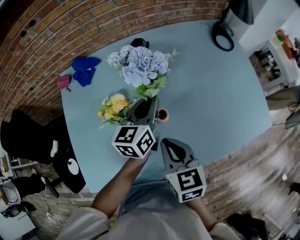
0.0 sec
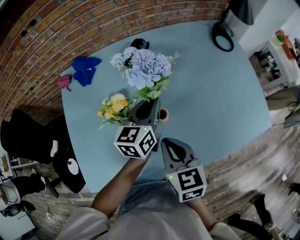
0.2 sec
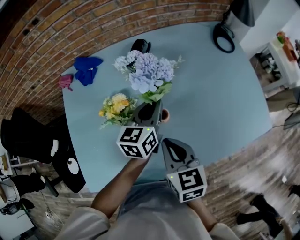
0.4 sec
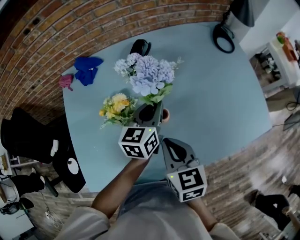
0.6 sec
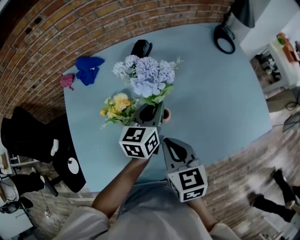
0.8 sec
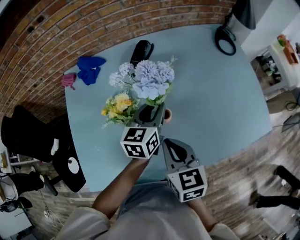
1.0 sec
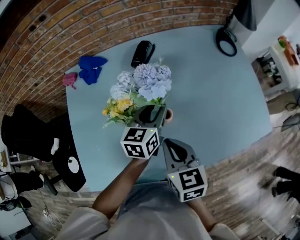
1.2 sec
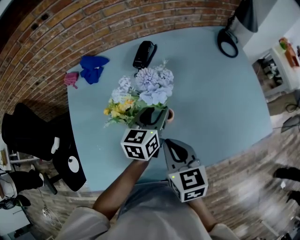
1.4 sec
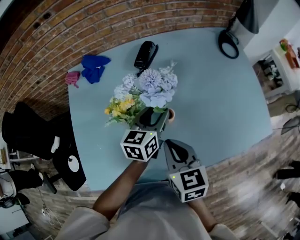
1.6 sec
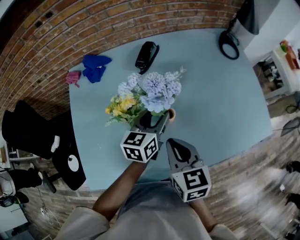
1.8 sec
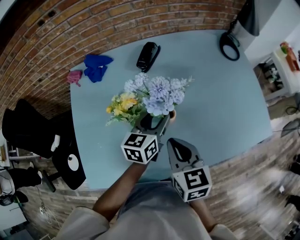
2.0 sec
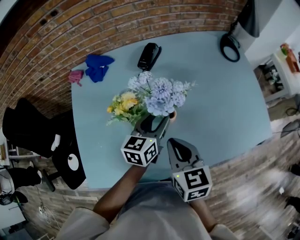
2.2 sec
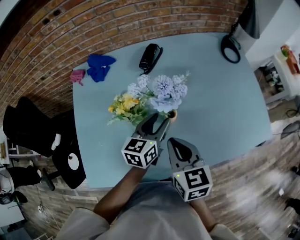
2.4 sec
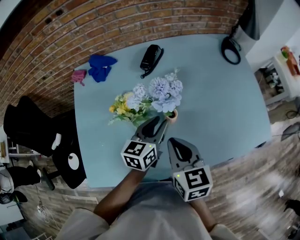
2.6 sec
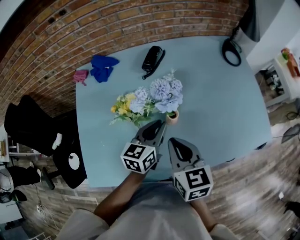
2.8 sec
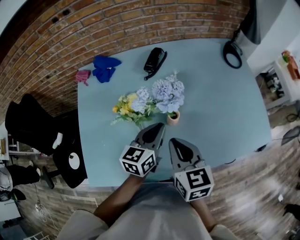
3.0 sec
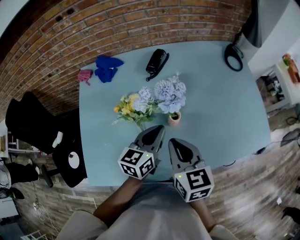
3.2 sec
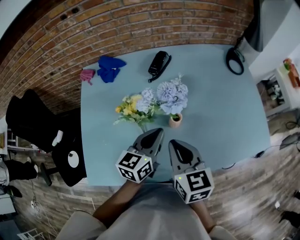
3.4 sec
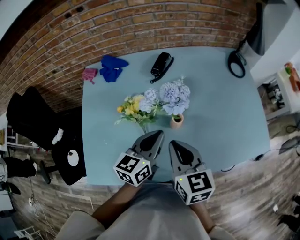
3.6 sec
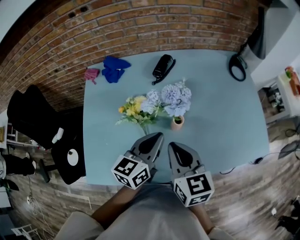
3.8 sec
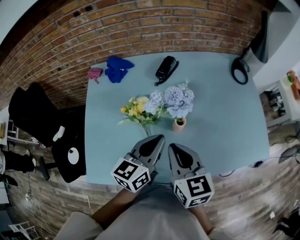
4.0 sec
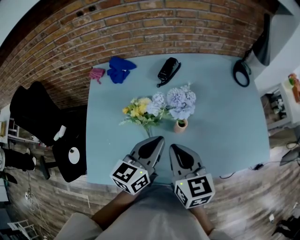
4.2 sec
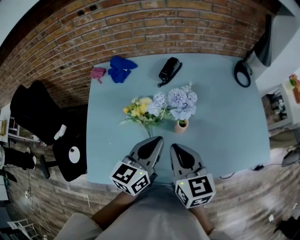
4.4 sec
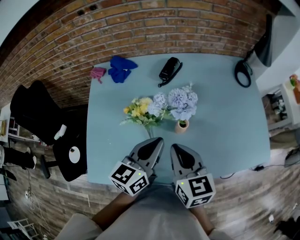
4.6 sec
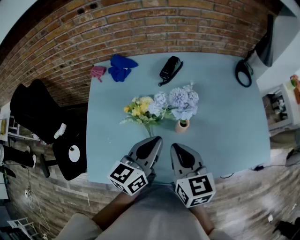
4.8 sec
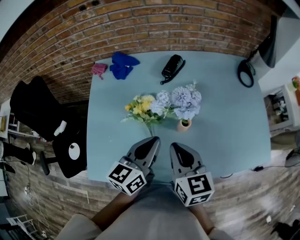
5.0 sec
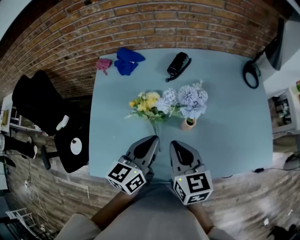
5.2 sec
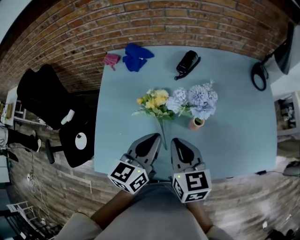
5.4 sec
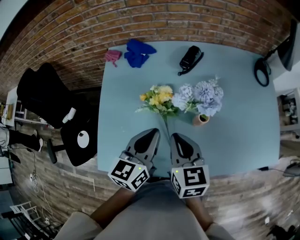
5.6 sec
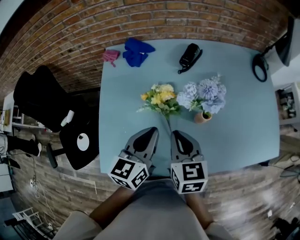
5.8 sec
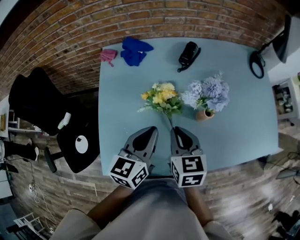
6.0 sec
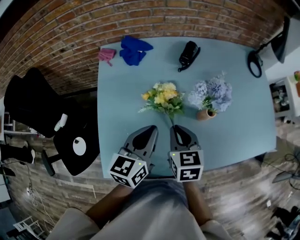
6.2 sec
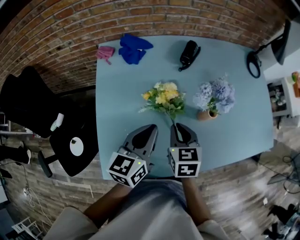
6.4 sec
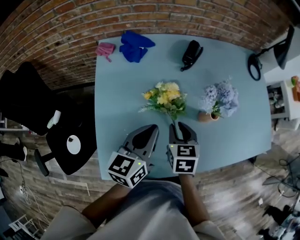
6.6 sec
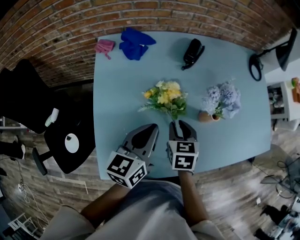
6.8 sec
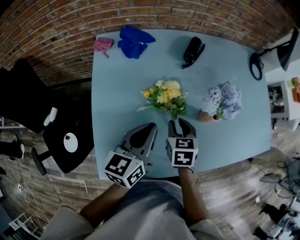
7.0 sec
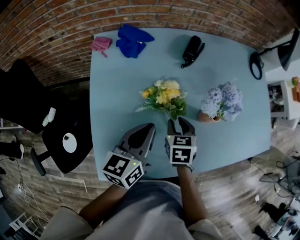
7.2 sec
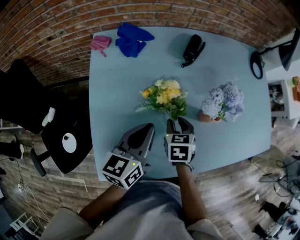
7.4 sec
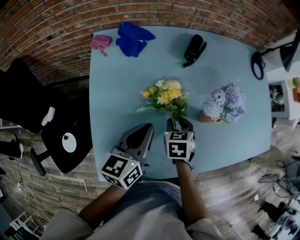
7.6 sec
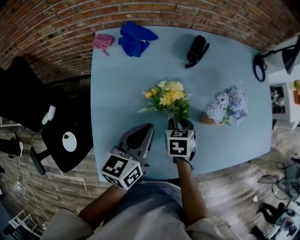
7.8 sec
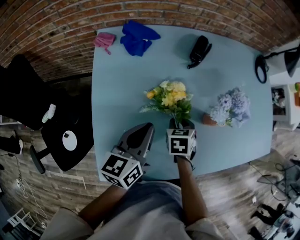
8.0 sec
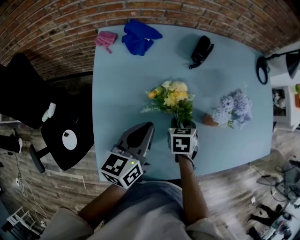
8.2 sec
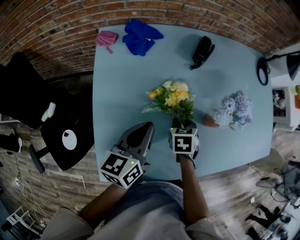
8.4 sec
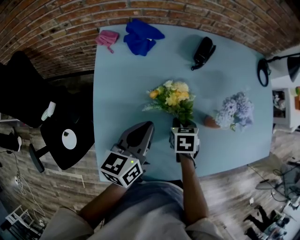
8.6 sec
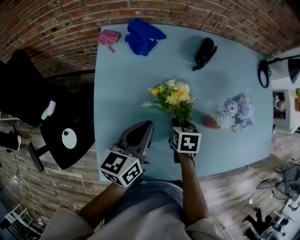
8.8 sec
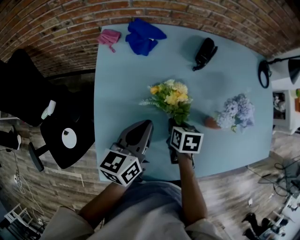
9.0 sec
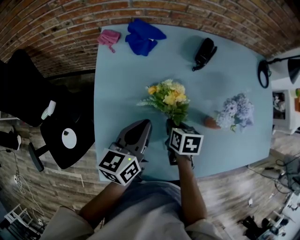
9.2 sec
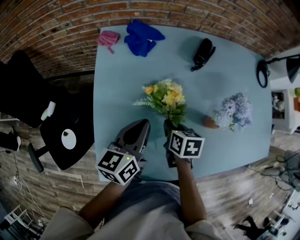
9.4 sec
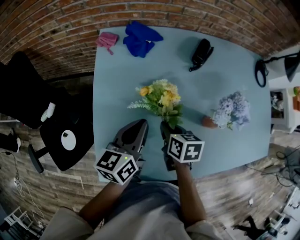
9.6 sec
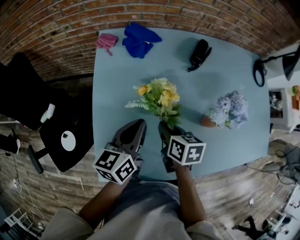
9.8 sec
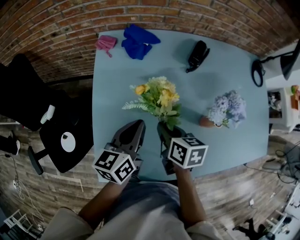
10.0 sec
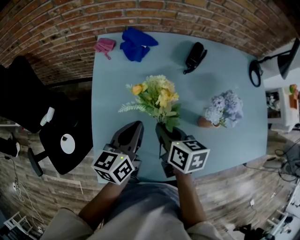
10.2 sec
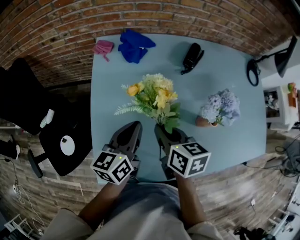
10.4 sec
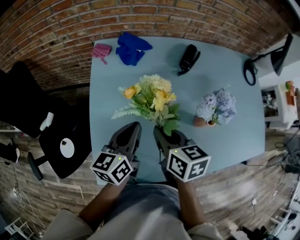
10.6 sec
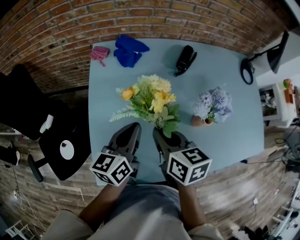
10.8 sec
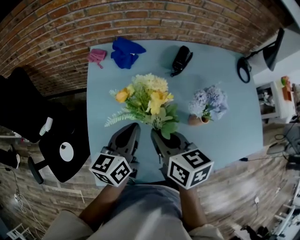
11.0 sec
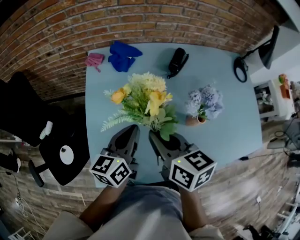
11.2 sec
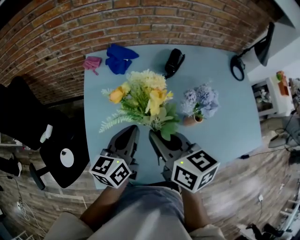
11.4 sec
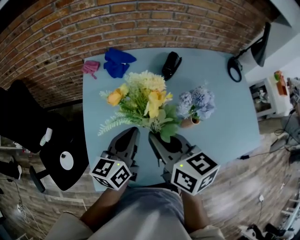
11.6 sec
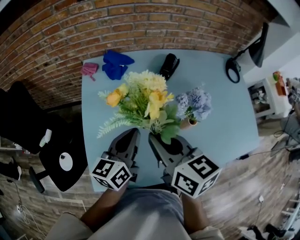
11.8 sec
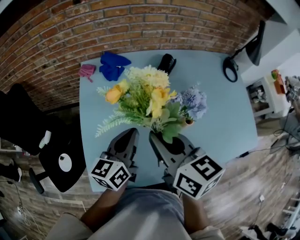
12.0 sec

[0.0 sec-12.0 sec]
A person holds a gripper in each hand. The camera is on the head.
0.0 sec to 1.6 sec: The left gripper ends up about 5 cm from where it was, and opens its fingers.
1.6 sec to 3.0 sec: The left gripper is displaced backward by about 5 cm, and closes up.
3.0 sec to 4.4 sec: The left gripper moves upward, roughly 10 cm.
4.4 sec to 6.0 sec: The right gripper heads to the left and downward, covering some 10 cm; the left gripper shifts some 15 cm to the left.
6.0 sec to 7.6 sec: The right gripper heads downward, covering approximately 15 cm, swivels about 30 degrees, and opens its fingers; the left gripper is displaced to the left by some 5 cm.
7.6 sec to 9.0 sec: The right gripper changes its angle by some 20 degrees.
9.0 sec to 10.4 sec: The right gripper goes about 15 cm upward, and swivels approximately 20 degrees.
10.4 sec to 12.0 sec: The left gripper is displaced to the right and upward by about 10 cm. The right gripper goes about 15 cm upward.

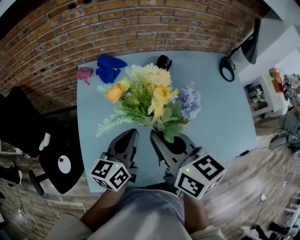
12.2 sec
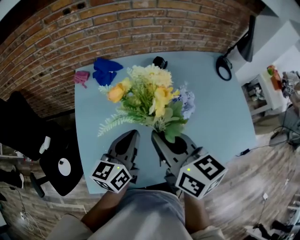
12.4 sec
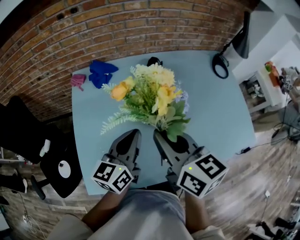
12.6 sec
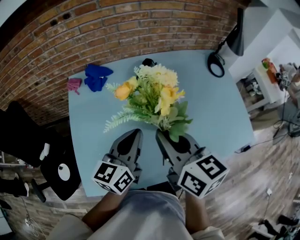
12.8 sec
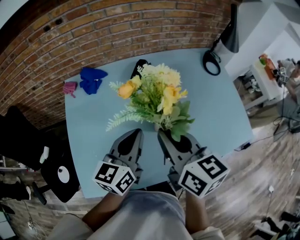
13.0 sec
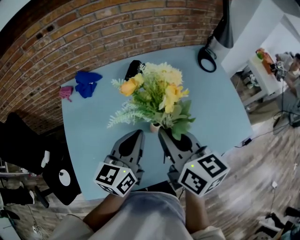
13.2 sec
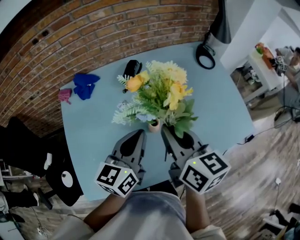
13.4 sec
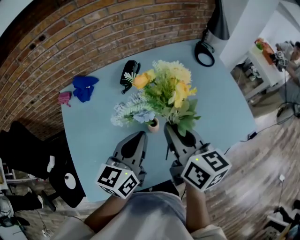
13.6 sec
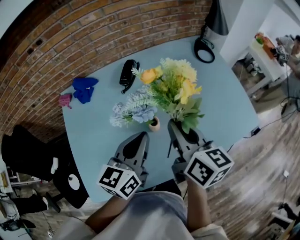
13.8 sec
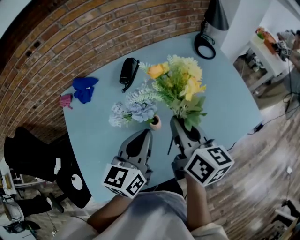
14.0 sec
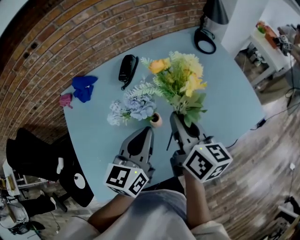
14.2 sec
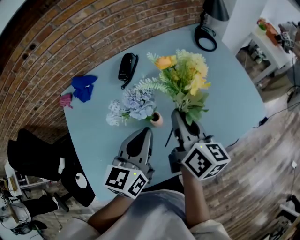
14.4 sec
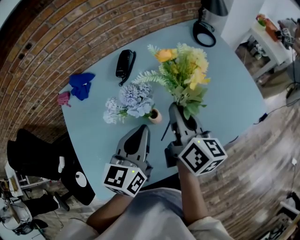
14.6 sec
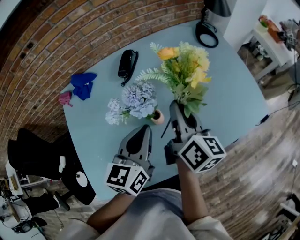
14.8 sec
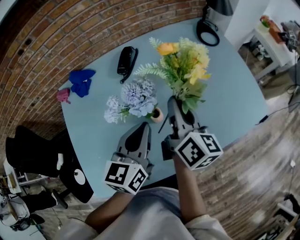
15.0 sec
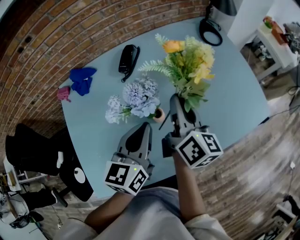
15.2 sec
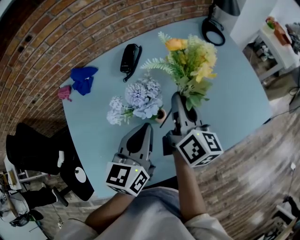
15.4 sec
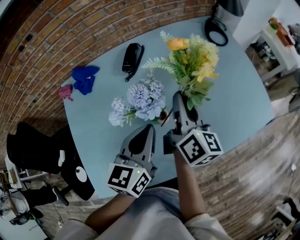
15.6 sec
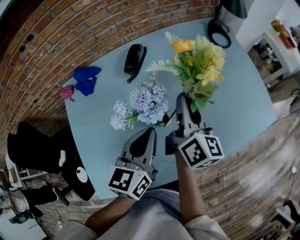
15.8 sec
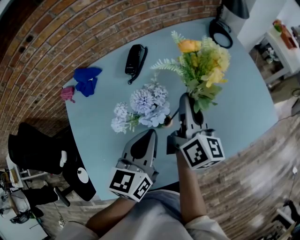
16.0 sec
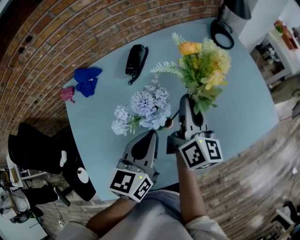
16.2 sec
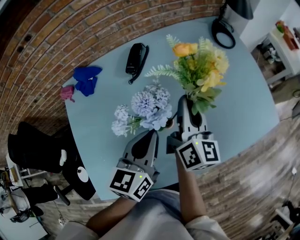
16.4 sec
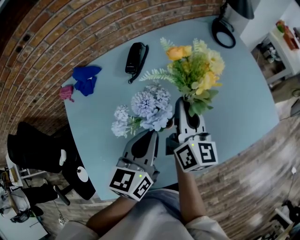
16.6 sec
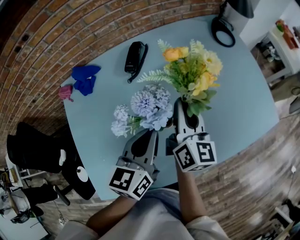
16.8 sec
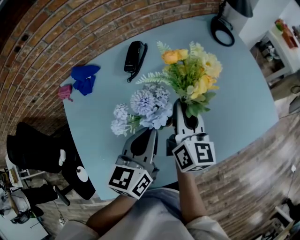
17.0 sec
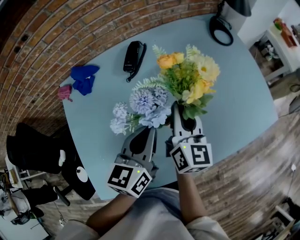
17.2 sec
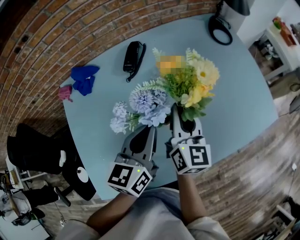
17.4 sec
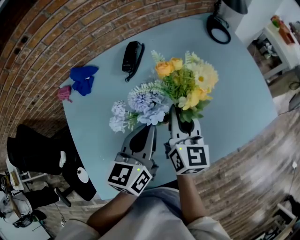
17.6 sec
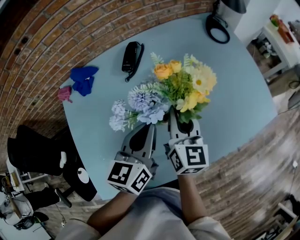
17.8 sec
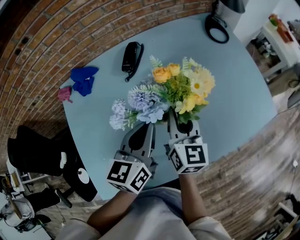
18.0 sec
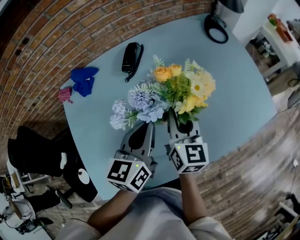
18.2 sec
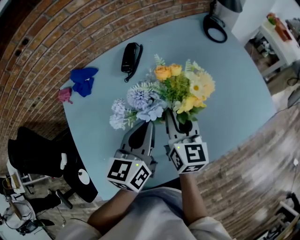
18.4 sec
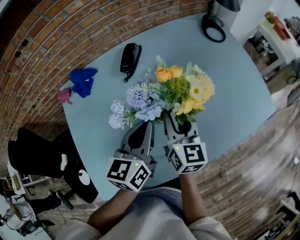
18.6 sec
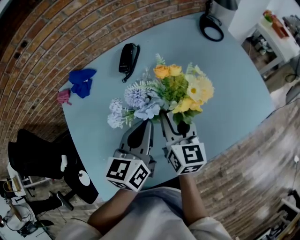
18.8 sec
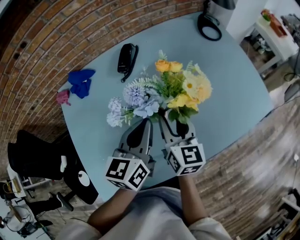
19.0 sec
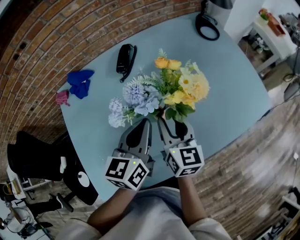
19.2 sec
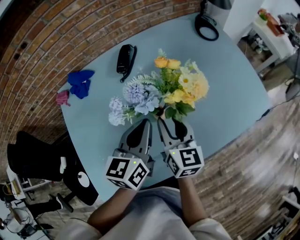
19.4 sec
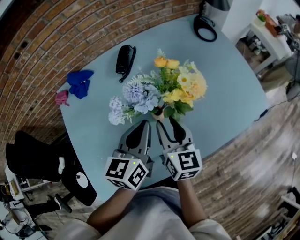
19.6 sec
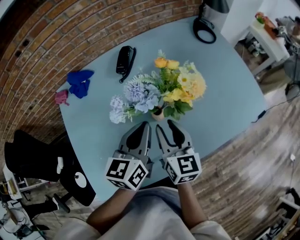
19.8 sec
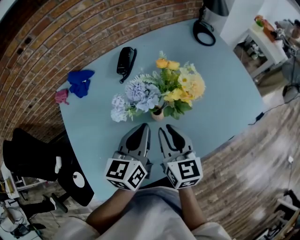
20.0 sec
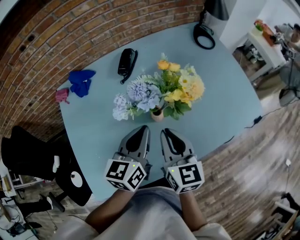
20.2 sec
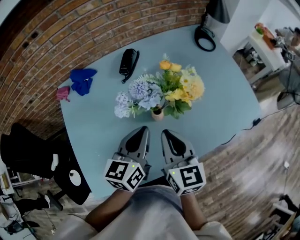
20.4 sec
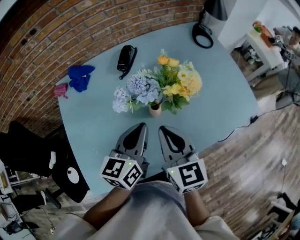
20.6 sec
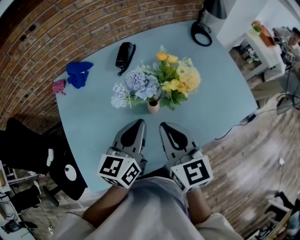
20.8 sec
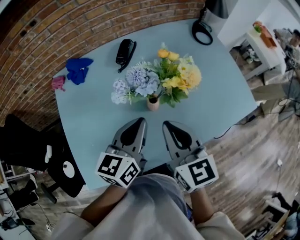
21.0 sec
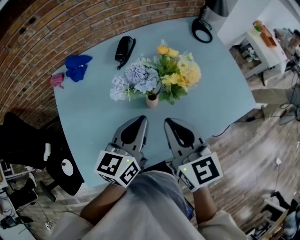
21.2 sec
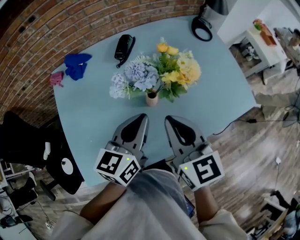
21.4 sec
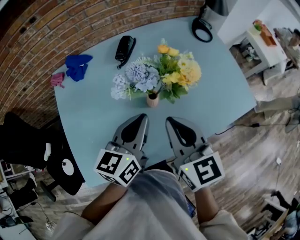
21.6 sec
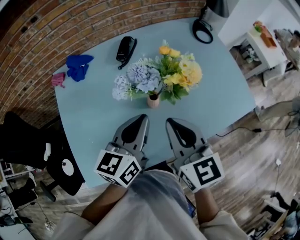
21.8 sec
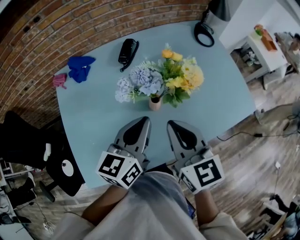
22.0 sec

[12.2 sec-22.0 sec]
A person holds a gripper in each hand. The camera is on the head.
12.2 sec to 13.6 sec: The two grippers go some 20 cm to the right. The right gripper turns by approximately 20 degrees.
13.6 sec to 15.0 sec: The right gripper travels forward and downward by some 10 cm, and rotates about 20 degrees.
15.0 sec to 16.4 sec: The grippers make only small movements.
16.4 sec to 17.8 sec: The right gripper moves approximately 5 cm.
17.8 sec to 19.2 sec: The right gripper changes place by roughly 5 cm, and opens.
19.2 sec to 20.6 sec: The right gripper travels upward and backward by about 10 cm, and closes. Meanwhile the left gripper shifts by some 5 cm.
20.6 sec to 22.0 sec: The grippers stay close to where they were, moving slightly.

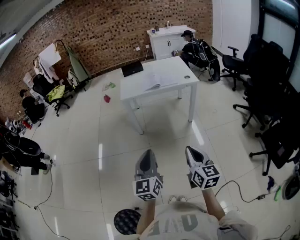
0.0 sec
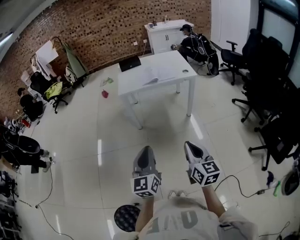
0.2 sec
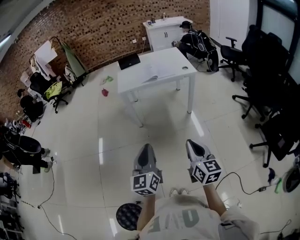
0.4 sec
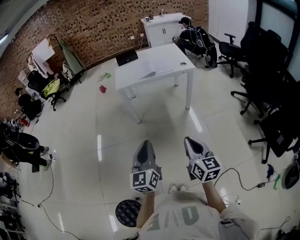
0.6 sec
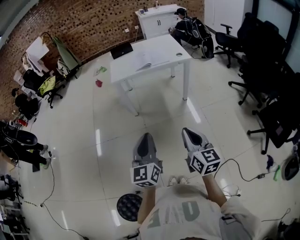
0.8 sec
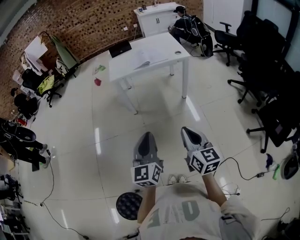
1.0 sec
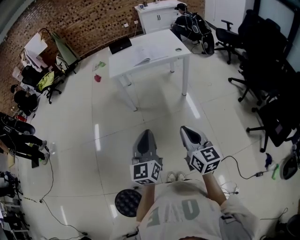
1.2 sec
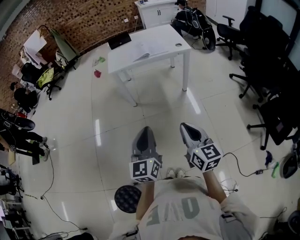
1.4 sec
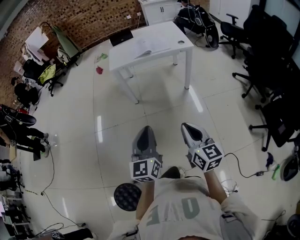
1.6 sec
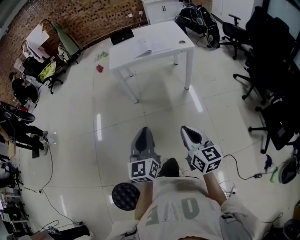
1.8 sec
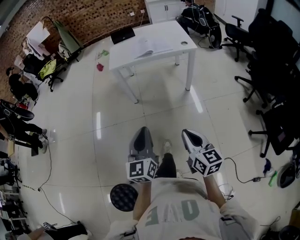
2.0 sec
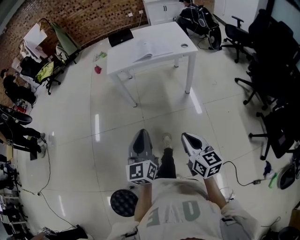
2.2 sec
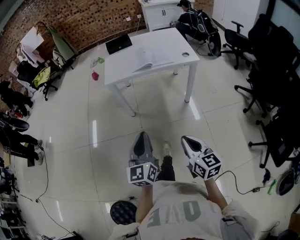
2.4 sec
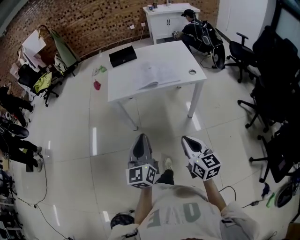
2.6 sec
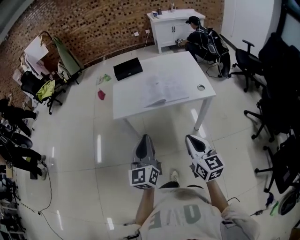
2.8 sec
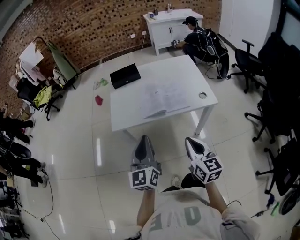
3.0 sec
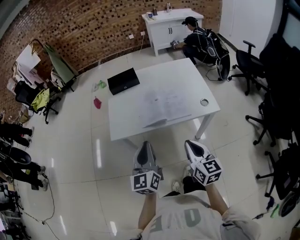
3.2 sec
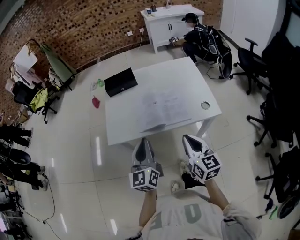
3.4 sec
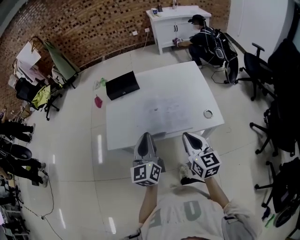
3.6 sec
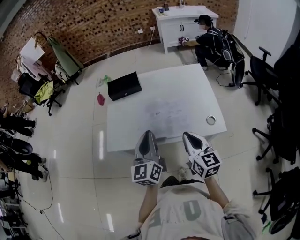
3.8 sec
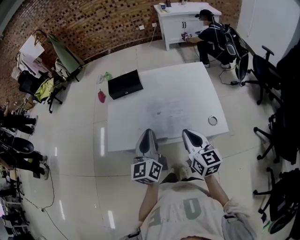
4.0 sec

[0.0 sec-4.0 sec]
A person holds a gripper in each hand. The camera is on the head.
0.0 sec to 1.4 sec: There are only small adjustments of the grippers.
1.4 sec to 2.6 sec: The two grippers go approximately 30 cm forward.
2.6 sec to 4.0 sec: The pair of grippers is taken forward, about 40 cm.
